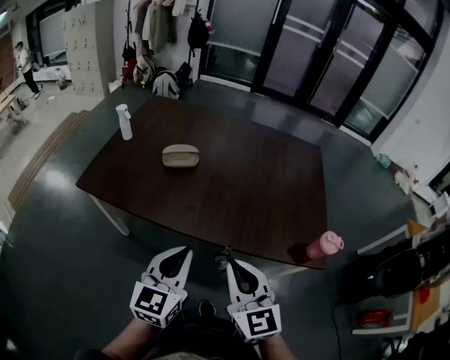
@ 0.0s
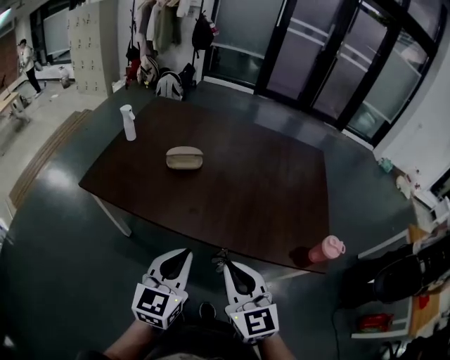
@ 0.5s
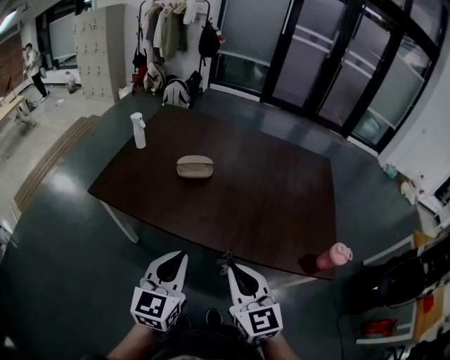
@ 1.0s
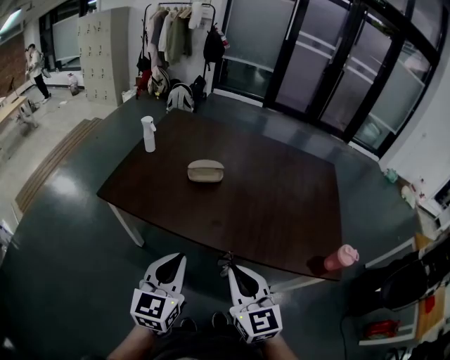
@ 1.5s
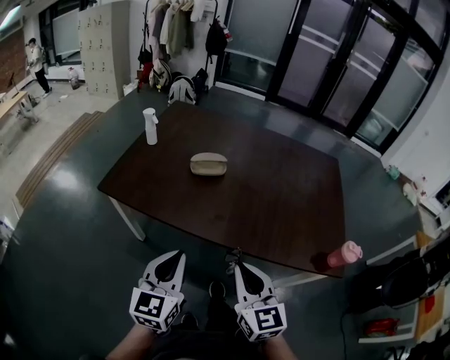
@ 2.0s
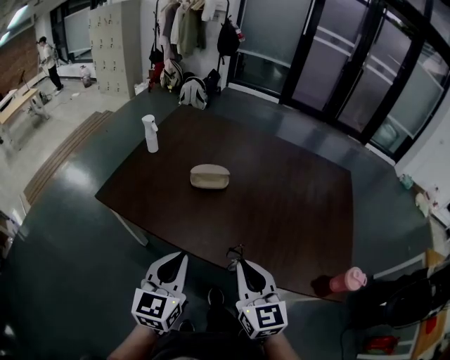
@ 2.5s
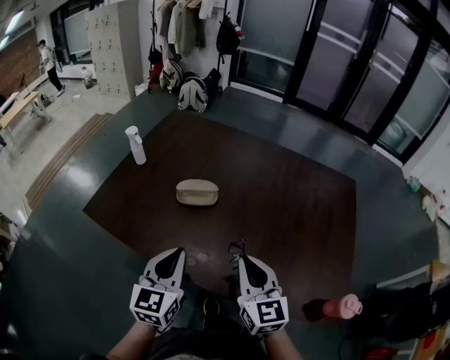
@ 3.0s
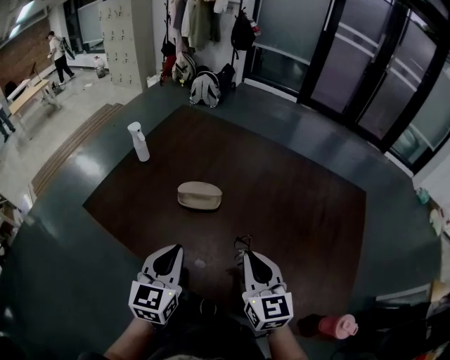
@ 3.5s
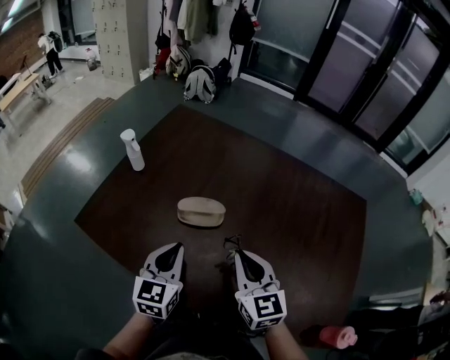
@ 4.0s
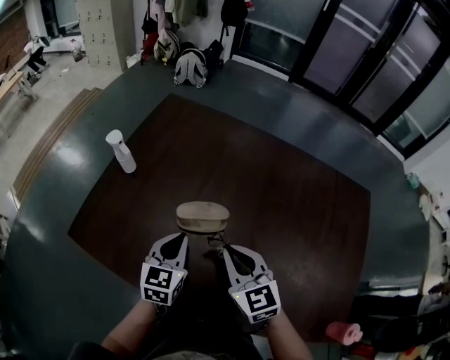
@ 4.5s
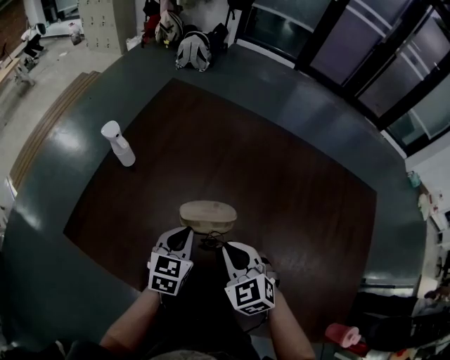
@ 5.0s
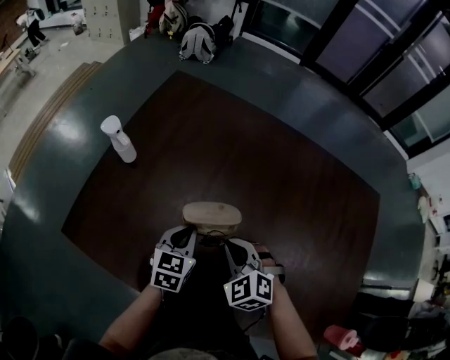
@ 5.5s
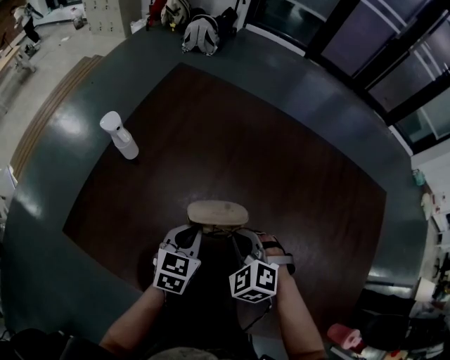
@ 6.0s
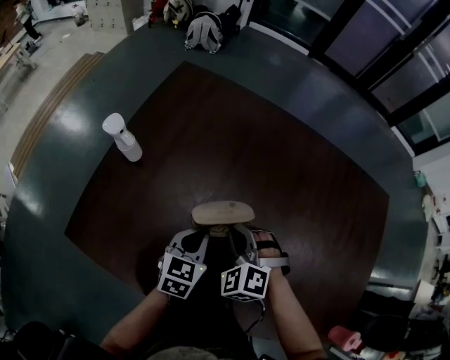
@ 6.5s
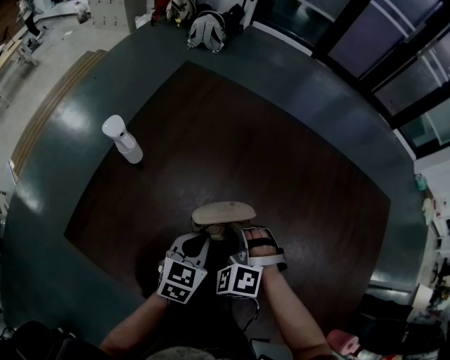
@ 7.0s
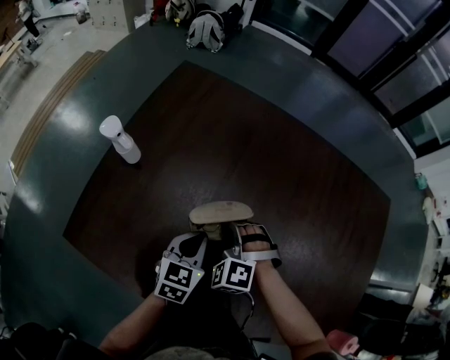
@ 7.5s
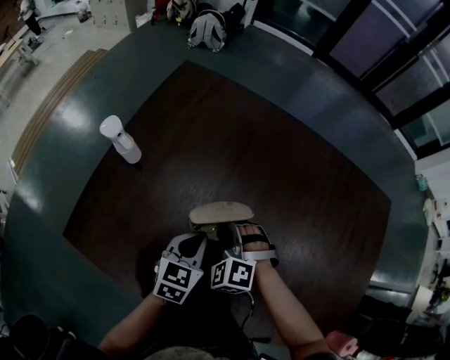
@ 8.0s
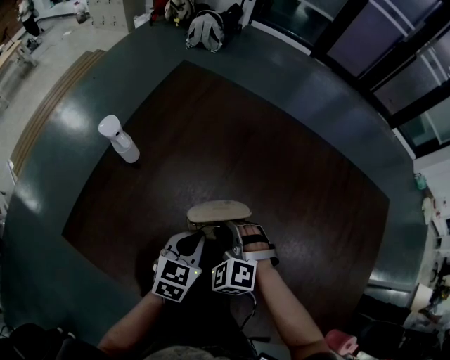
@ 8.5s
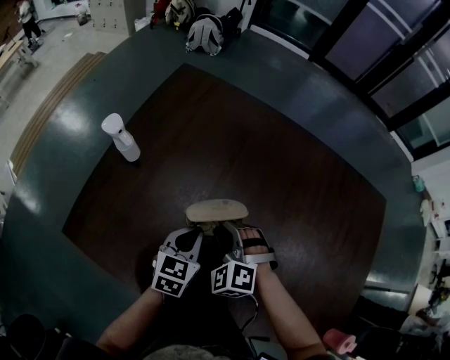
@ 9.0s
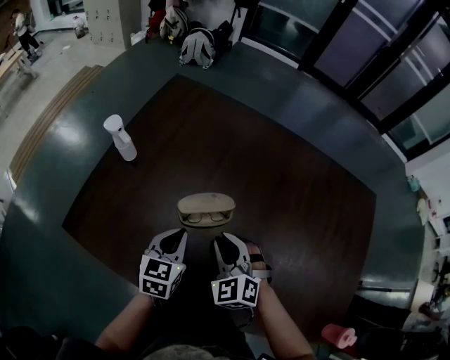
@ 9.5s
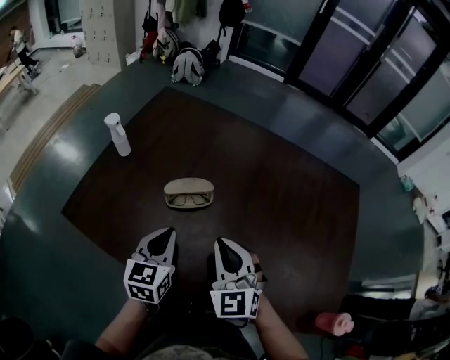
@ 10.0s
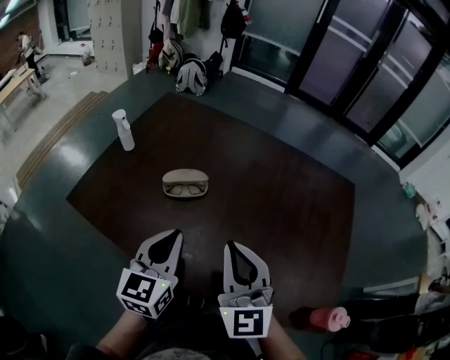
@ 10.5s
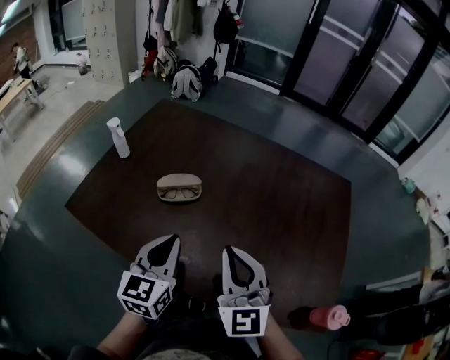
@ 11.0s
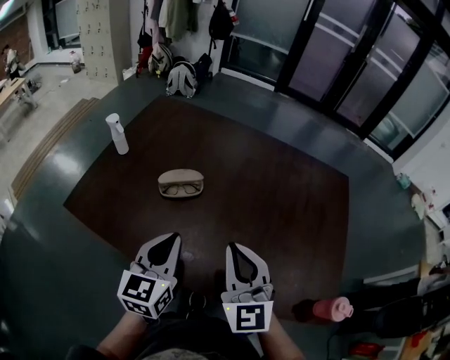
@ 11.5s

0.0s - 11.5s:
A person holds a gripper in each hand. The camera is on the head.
0.0s - 2.0s: The left gripper shifts about 10 cm to the left, while the right gripper goes about 5 cm to the left.
2.0s - 4.0s: Both grippers move forward, some 30 cm.
4.0s - 6.0s: The right gripper heads downward, forward and to the left, covering about 20 cm, and tips its fingers downward by approximately 40 degrees. Meanwhile the left gripper travels downward and forward by roughly 20 cm, and rotates approximately 20 degrees.
6.0s - 7.5s: The right gripper shifts approximately 5 cm to the left.
7.5s - 9.5s: The right gripper heads backward and upward, covering some 10 cm, and rotates approximately 30 degrees.
9.5s - 11.5s: The left gripper travels backward, upward and to the right by some 25 cm, while the right gripper goes some 25 cm upward, backward and to the right, and angles its fingers upward, by about 40 degrees.

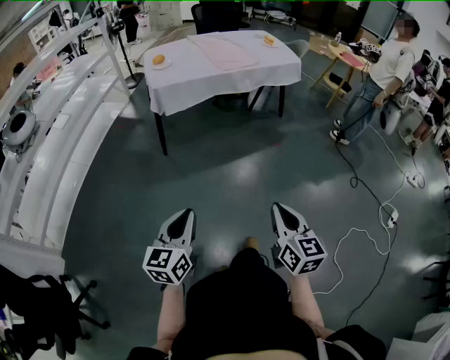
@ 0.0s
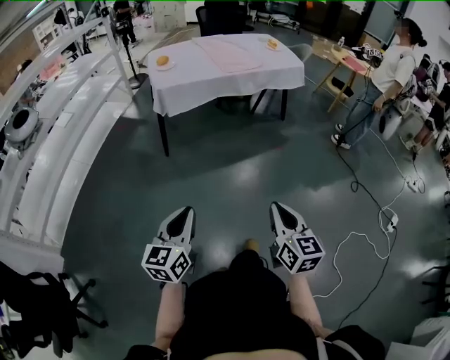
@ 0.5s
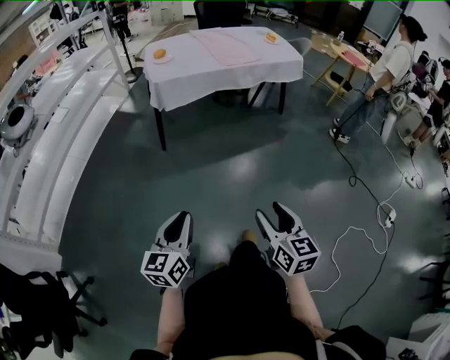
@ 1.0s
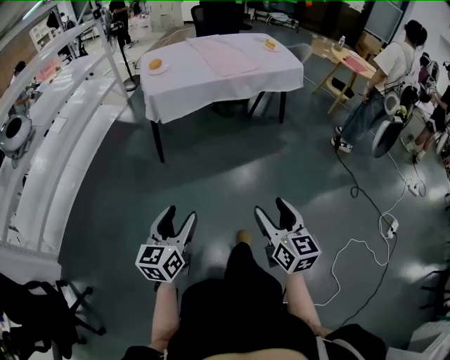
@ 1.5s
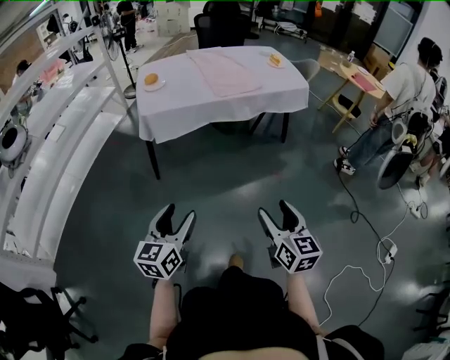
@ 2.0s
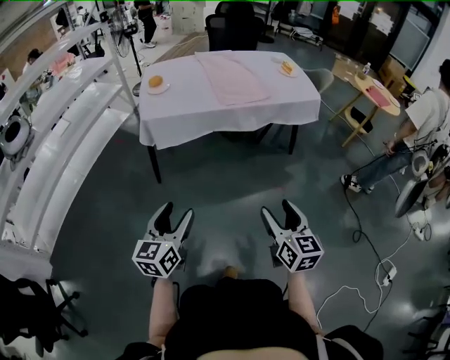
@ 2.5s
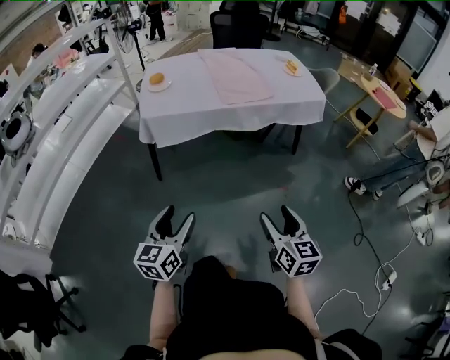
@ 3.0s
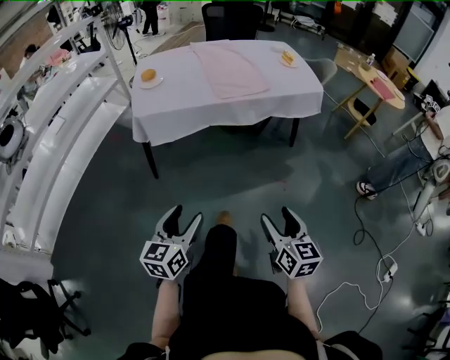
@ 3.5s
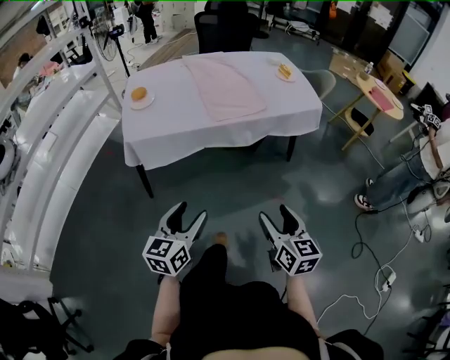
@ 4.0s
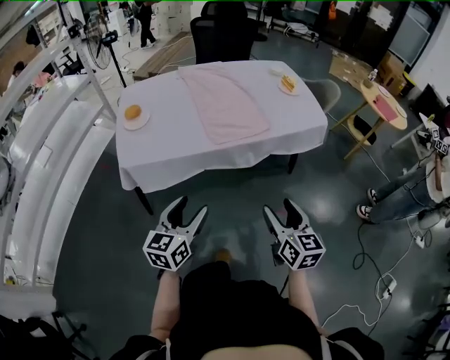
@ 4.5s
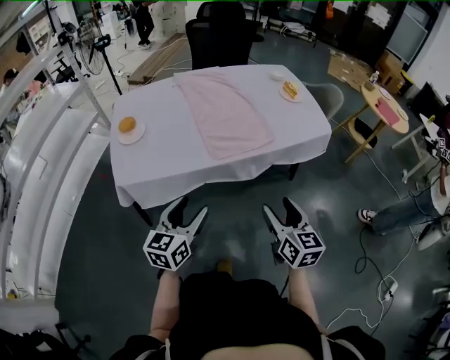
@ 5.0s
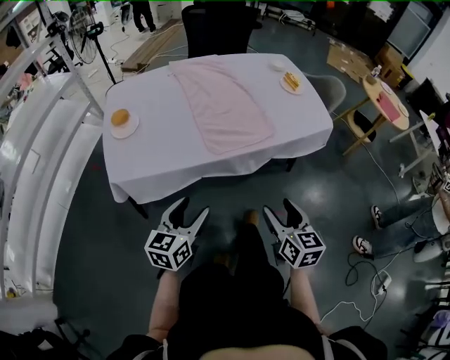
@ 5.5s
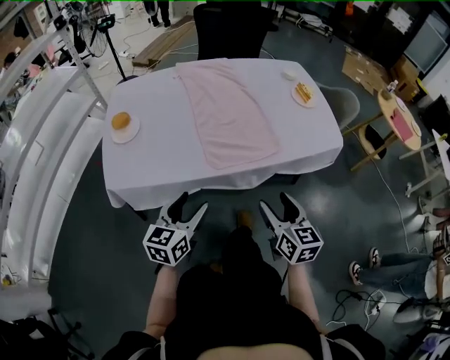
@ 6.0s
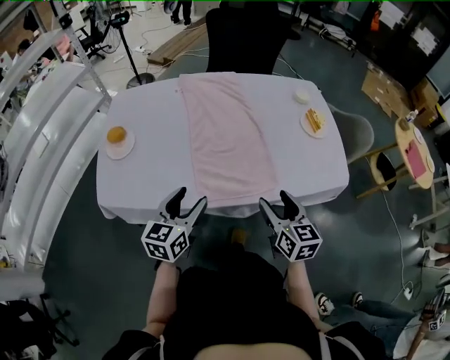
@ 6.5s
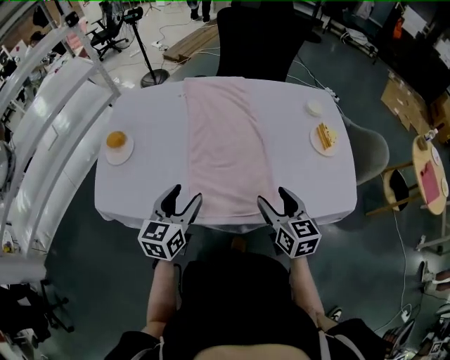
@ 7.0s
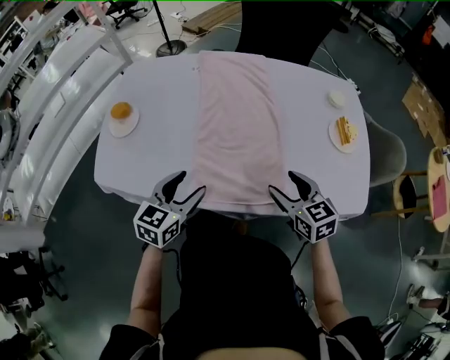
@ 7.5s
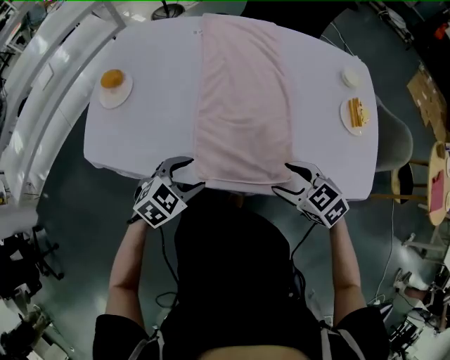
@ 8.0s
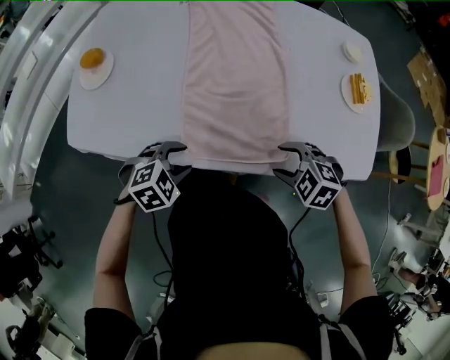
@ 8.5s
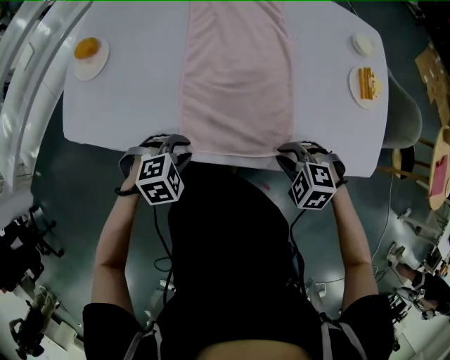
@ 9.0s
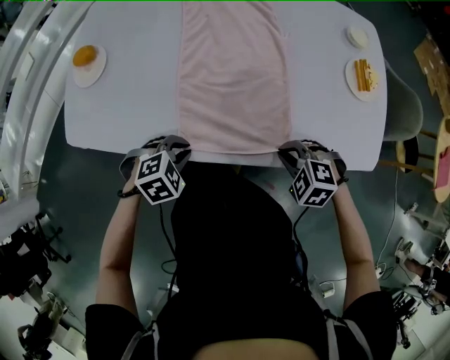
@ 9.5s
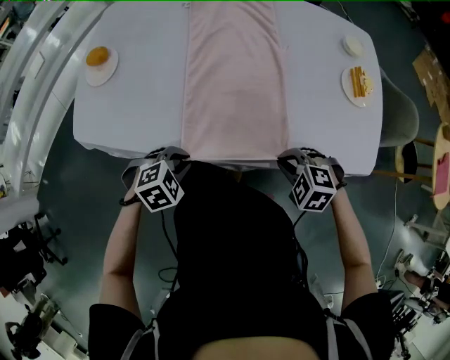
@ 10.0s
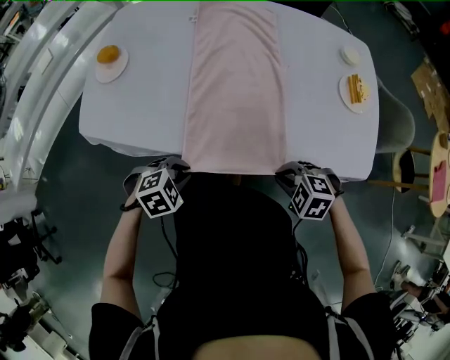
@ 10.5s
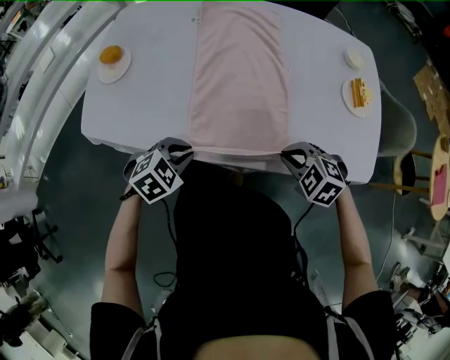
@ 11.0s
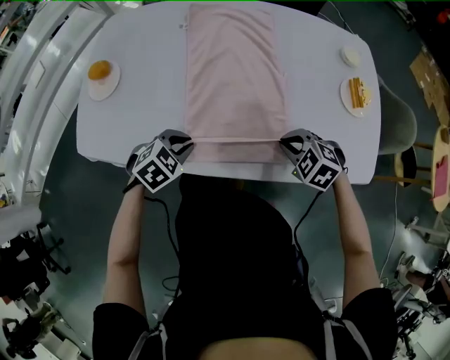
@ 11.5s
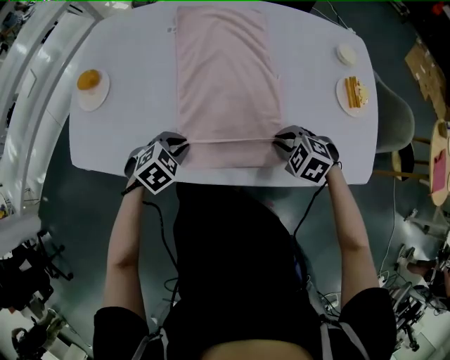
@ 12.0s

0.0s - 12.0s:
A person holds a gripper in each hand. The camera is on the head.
0.0s - 2.0s: Both grippers travel together forward, some 25 cm. The right gripper opens its fingers. Meanwhile the left gripper opens.
2.0s - 4.0s: The two grippers go some 25 cm forward.
4.0s - 6.0s: The grippers both shift forward by about 35 cm.
6.0s - 8.0s: The right gripper shifts by roughly 30 cm, and turns by some 70 degrees, while the left gripper moves roughly 25 cm, and tilts its fingers about 30 degrees downward.
8.0s - 10.0s: The grippers both shift downward by approximately 5 cm. The left gripper swivels approximately 20 degrees, and closes up, while the right gripper turns by about 40 degrees, and closes up.
10.0s - 12.0s: The left gripper moves roughly 15 cm; the right gripper moves about 10 cm.

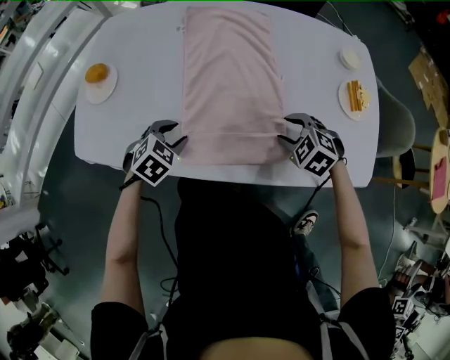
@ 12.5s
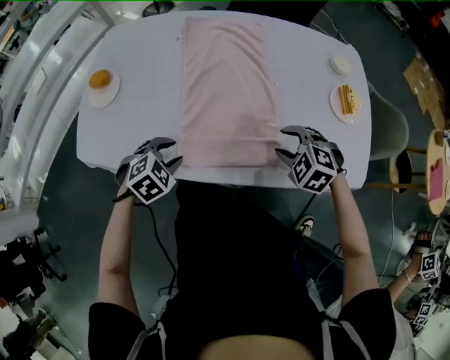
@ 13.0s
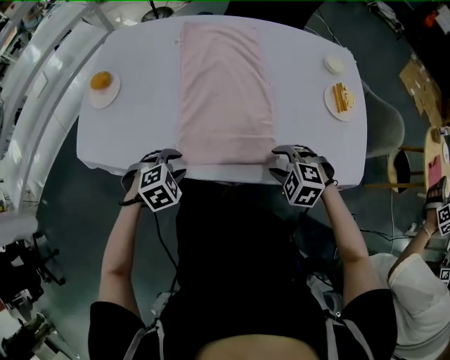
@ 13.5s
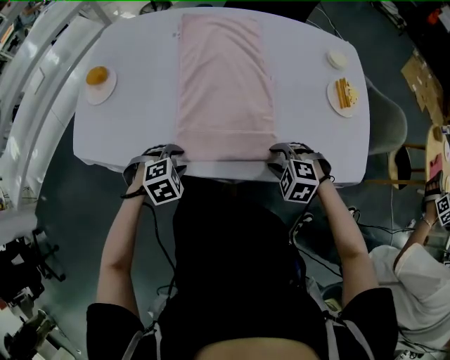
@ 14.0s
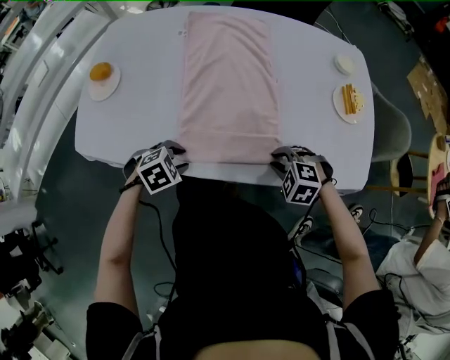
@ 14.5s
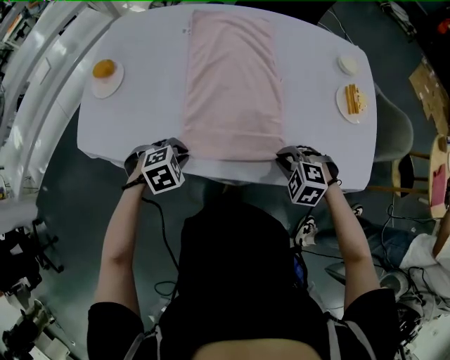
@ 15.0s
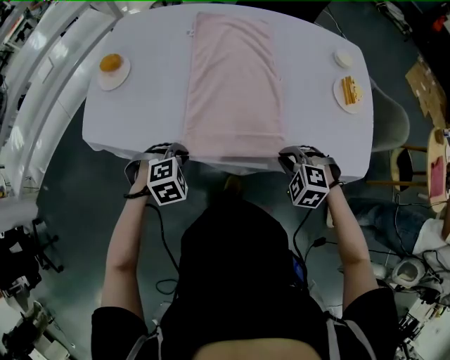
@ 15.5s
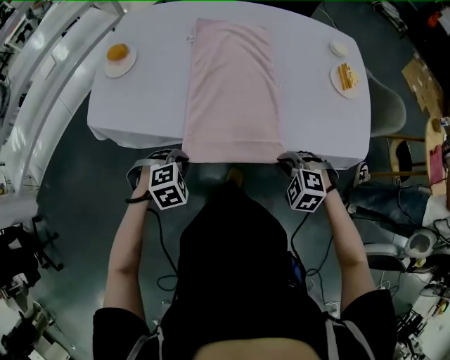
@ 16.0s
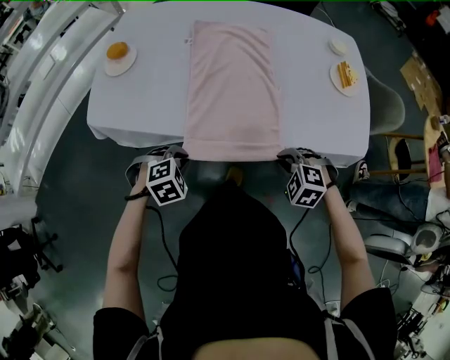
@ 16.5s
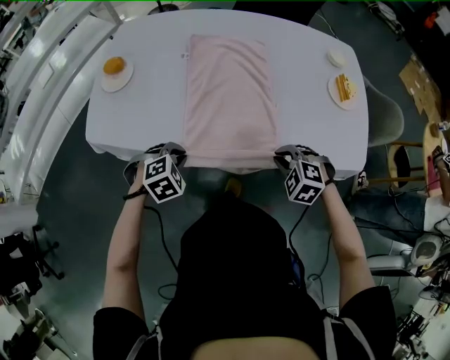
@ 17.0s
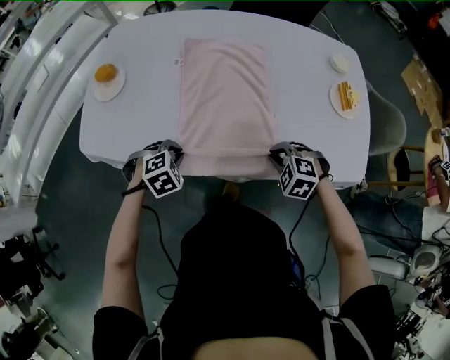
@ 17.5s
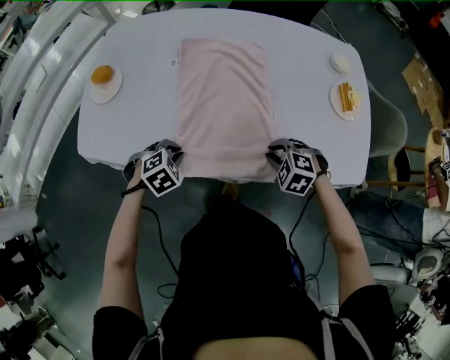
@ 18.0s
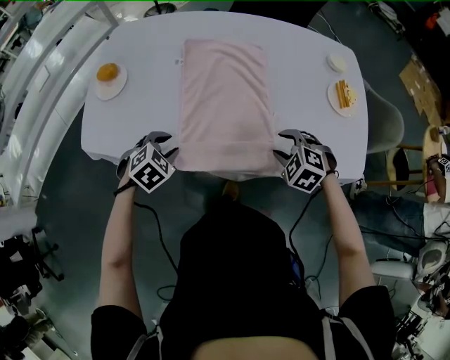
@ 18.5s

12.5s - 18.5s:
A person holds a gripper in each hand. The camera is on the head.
12.5s - 14.5s: The two grippers go approximately 10 cm backward. The left gripper turns by roughly 20 degrees, while the right gripper closes up.
14.5s - 16.5s: The grippers both shift backward by some 15 cm. The left gripper closes its fingers.
16.5s - 18.5s: The two grippers go roughly 15 cm forward. The left gripper opens up. The right gripper opens.
